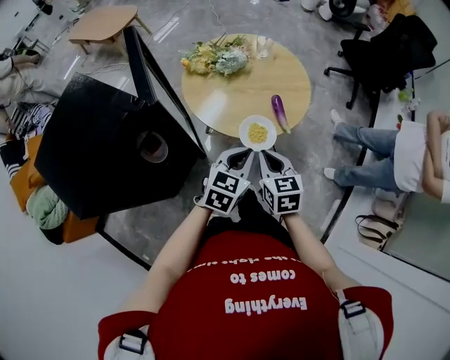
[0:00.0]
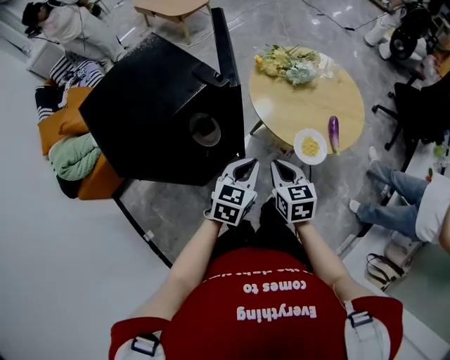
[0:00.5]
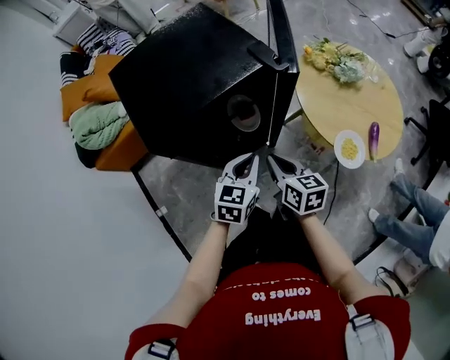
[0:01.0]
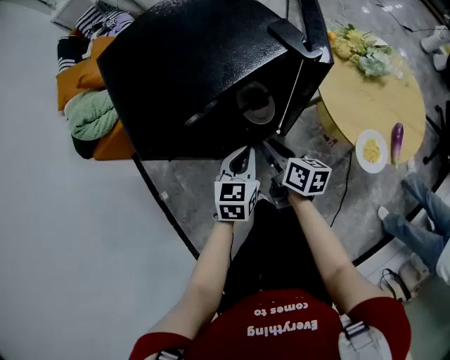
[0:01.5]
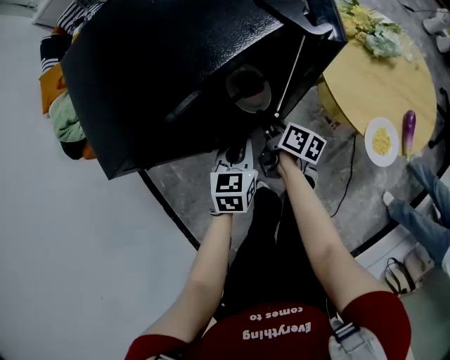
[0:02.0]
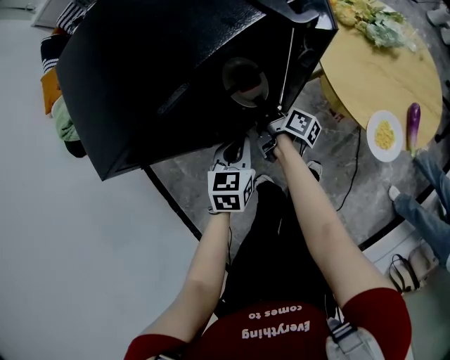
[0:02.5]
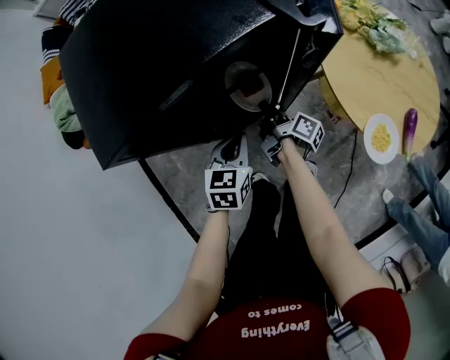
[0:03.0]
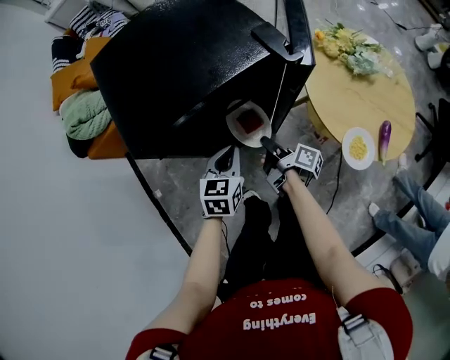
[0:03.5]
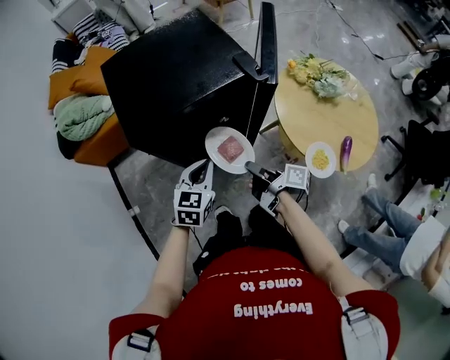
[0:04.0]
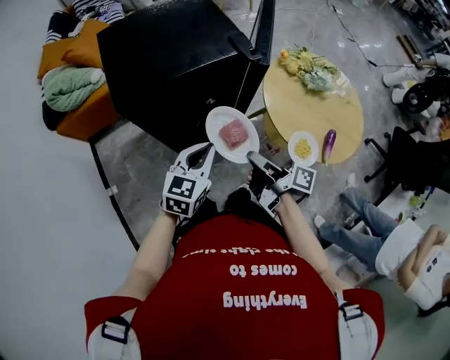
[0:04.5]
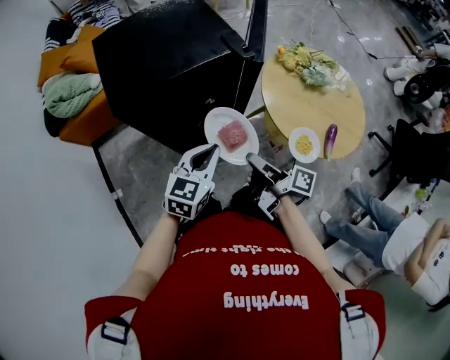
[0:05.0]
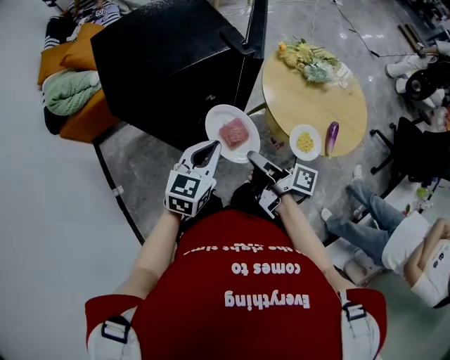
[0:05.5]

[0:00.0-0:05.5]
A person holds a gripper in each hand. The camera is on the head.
0:00.0 to 0:02.0: The left gripper changes place by about 40 cm, and turns by approximately 50 degrees; the right gripper changes place by about 40 cm, changes its angle by roughly 60 degrees, and opens its fingers.
0:02.0 to 0:03.5: The left gripper shifts about 5 cm upward. Meanwhile the right gripper is displaced backward by about 5 cm, changes its angle by some 20 degrees, and closes its fingers.
0:03.5 to 0:05.5: The right gripper goes about 25 cm upward and backward, while the left gripper moves upward, backward and to the right, approximately 20 cm.

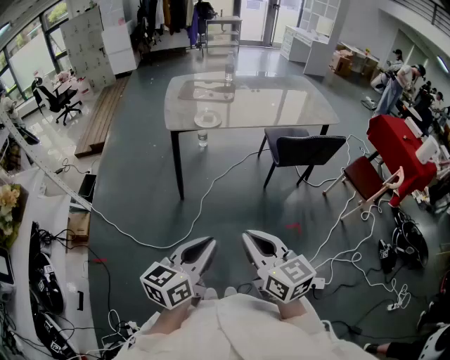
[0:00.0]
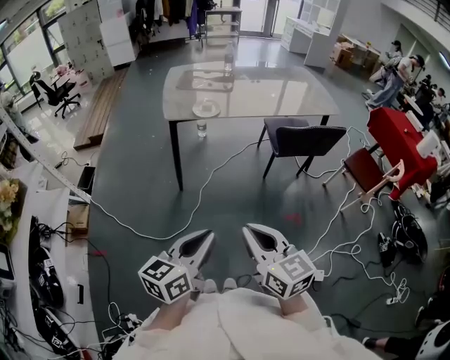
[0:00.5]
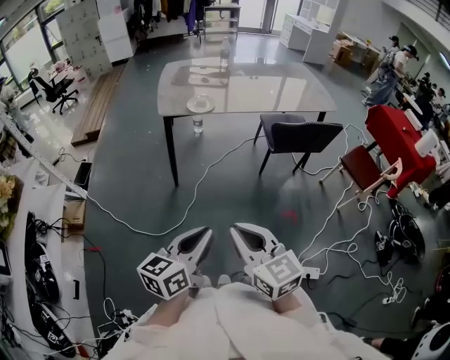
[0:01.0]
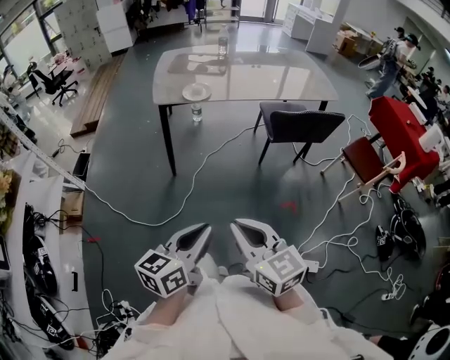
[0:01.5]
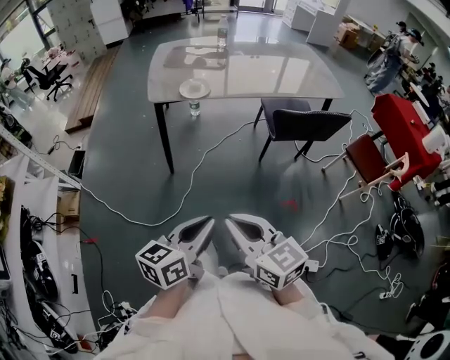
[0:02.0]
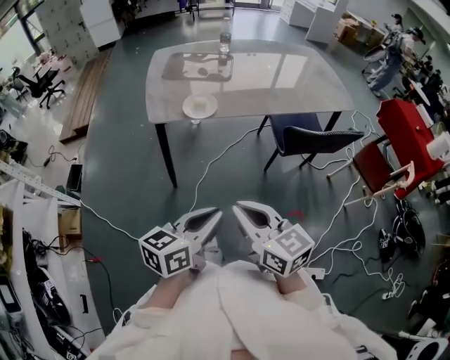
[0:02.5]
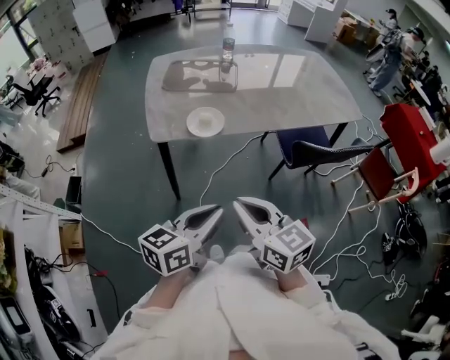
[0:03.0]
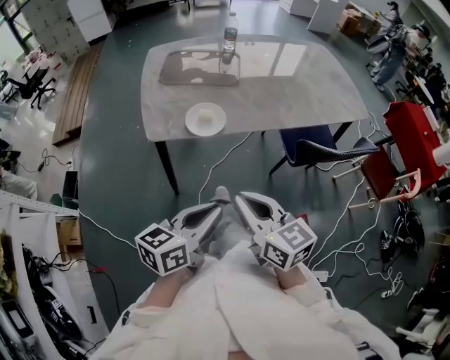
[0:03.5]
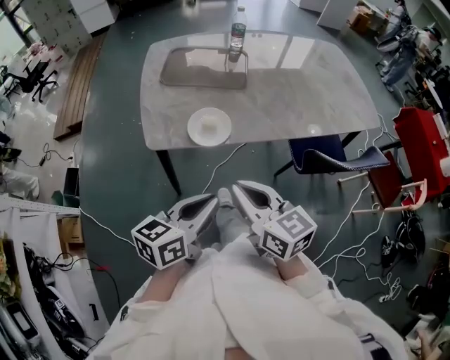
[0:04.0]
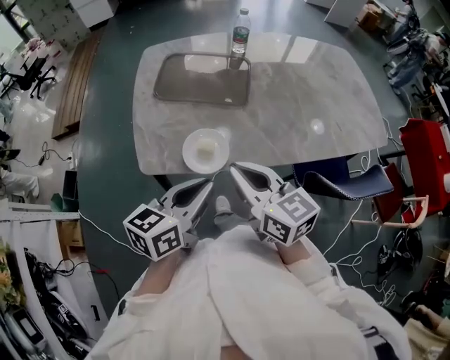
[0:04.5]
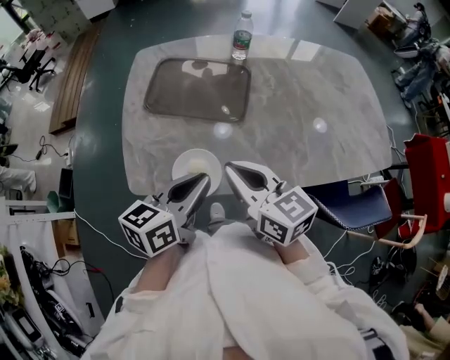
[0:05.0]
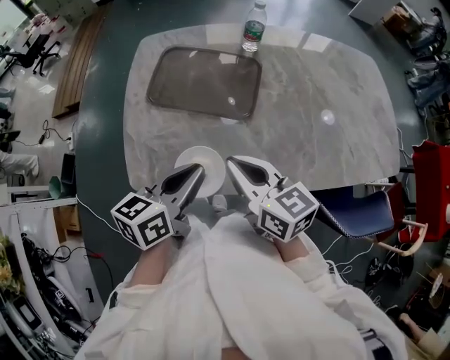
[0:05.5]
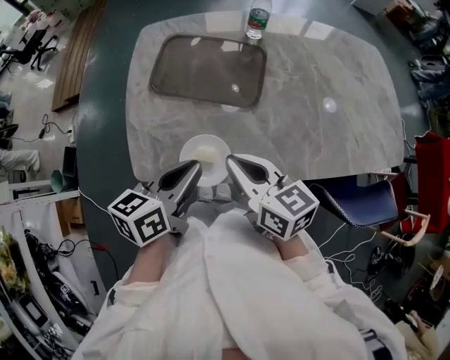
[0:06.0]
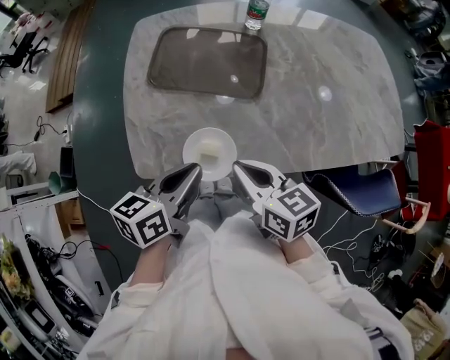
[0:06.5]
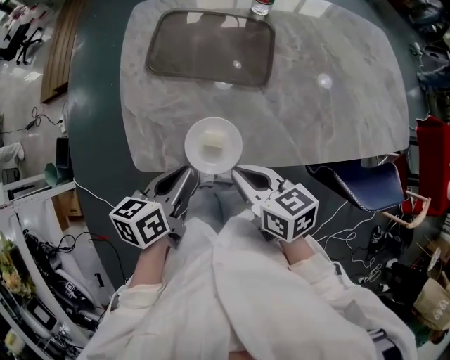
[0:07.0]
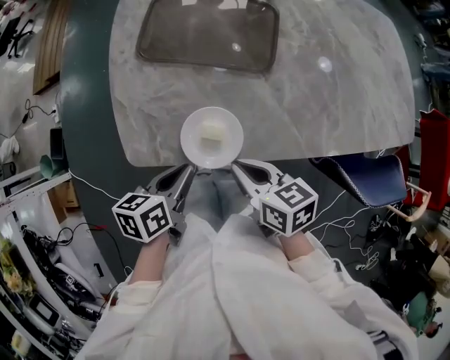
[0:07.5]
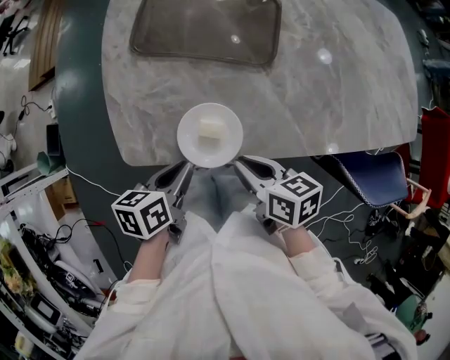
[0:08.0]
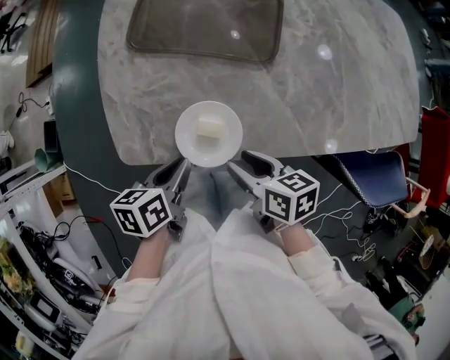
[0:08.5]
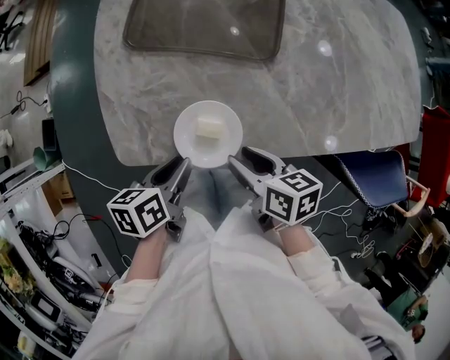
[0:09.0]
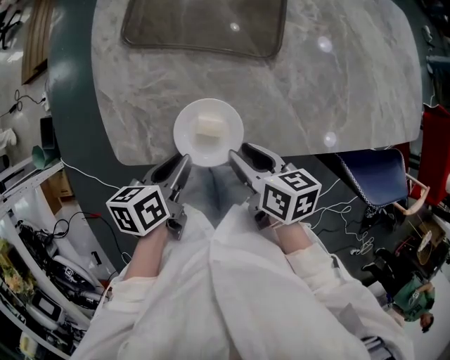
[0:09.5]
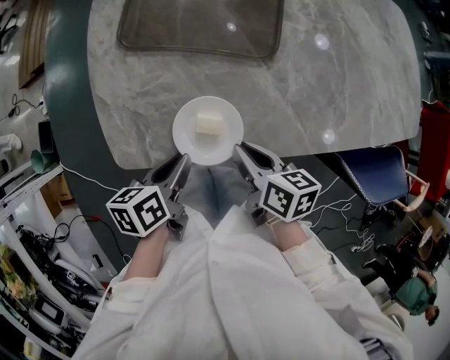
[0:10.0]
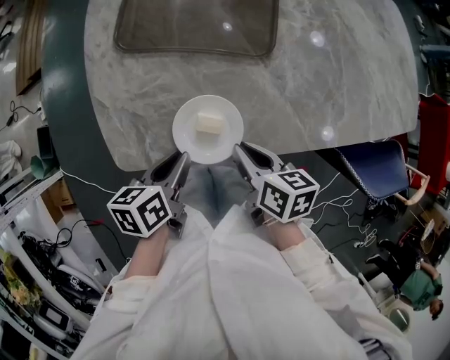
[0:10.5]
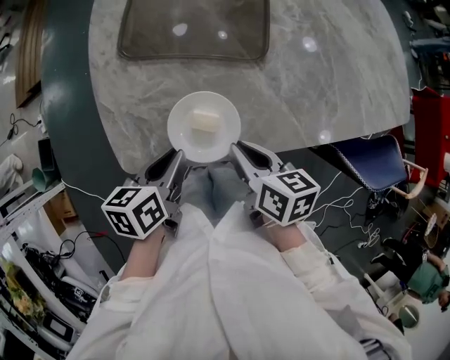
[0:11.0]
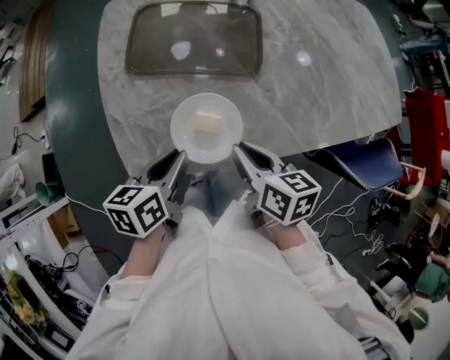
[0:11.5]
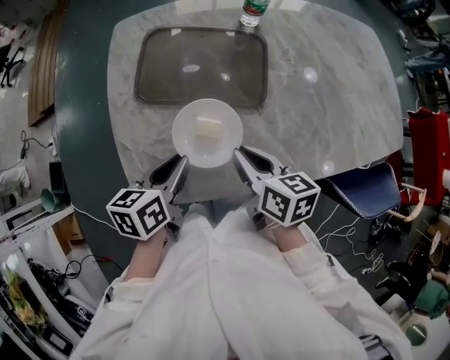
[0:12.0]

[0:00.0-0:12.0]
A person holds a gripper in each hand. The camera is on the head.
0:00.0 to 0:02.0: The right gripper travels forward by approximately 5 cm. Meanwhile the left gripper moves forward and downward, about 10 cm.
0:02.0 to 0:04.0: Both grippers are carried forward, approximately 40 cm.
0:04.0 to 0:06.0: The two grippers go some 25 cm forward.
0:06.0 to 0:08.0: The two grippers go about 15 cm downward. The left gripper rotates about 30 degrees. The right gripper rotates roughly 30 degrees.
0:08.0 to 0:10.0: The right gripper opens and closes again.
0:10.0 to 0:12.0: The right gripper is displaced upward and forward by roughly 10 cm; the left gripper moves forward and upward, roughly 15 cm.

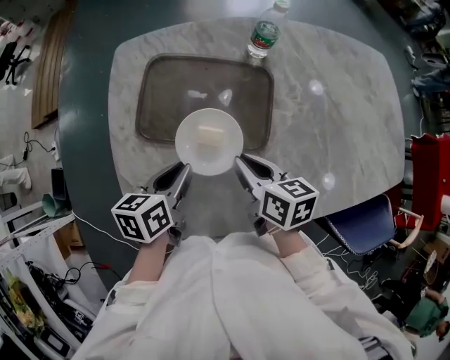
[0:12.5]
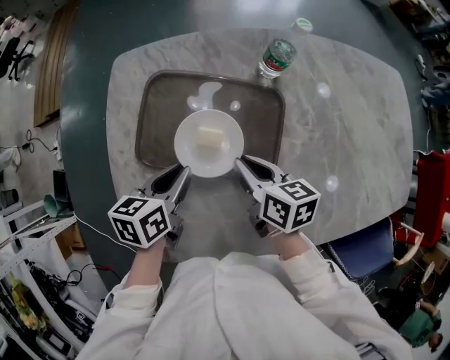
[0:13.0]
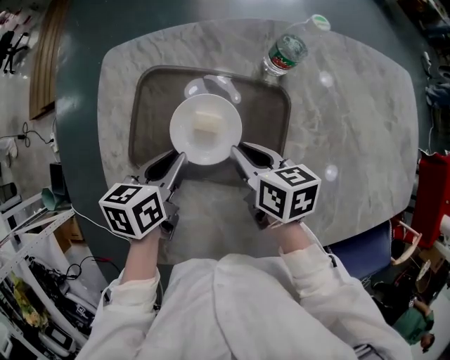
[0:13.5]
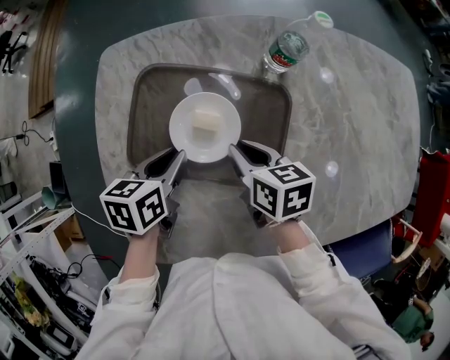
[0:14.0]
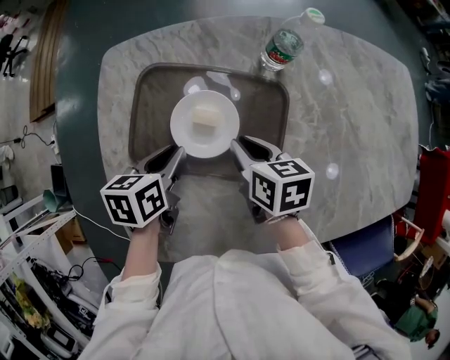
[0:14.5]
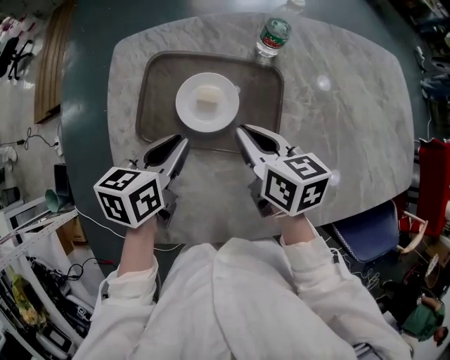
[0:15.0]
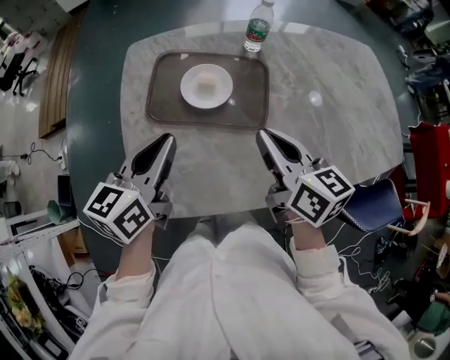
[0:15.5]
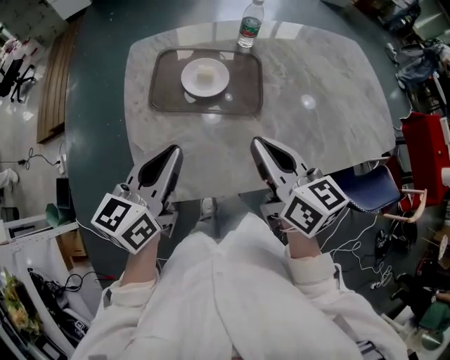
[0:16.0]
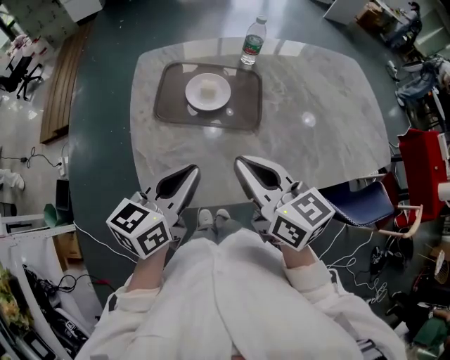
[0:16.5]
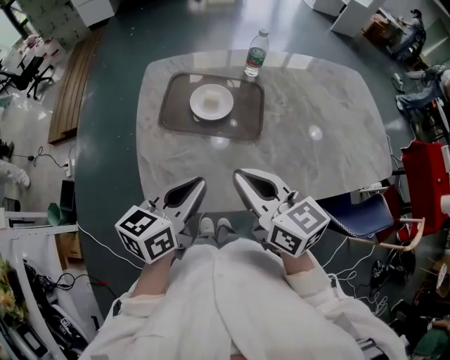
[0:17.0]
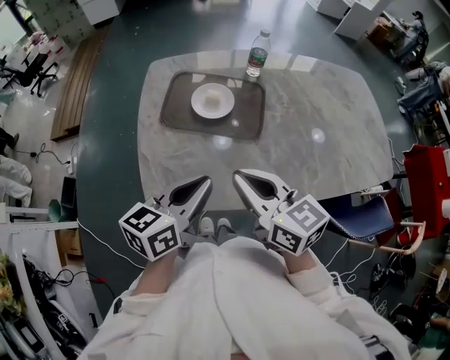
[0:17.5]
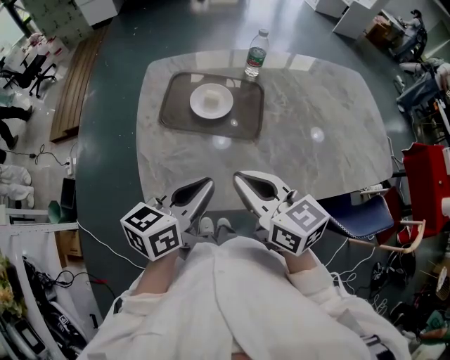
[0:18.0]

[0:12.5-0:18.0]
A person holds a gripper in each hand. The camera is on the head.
0:12.5 to 0:14.5: The right gripper shifts some 15 cm forward and downward. Meanwhile the left gripper travels forward by approximately 10 cm.
0:14.5 to 0:16.0: The two grippers go about 30 cm backward and upward. The left gripper angles its fingers upward, by about 30 degrees. The right gripper points its fingers roughly 30 degrees further upward.
0:16.0 to 0:18.0: The left gripper moves to the right, about 5 cm; the right gripper shifts by some 5 cm.

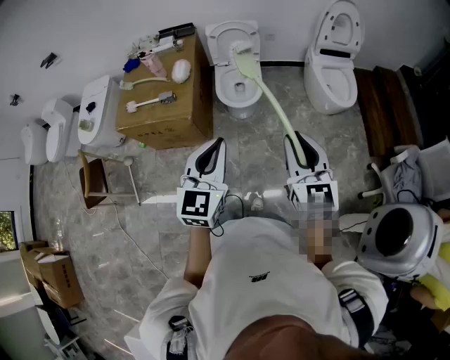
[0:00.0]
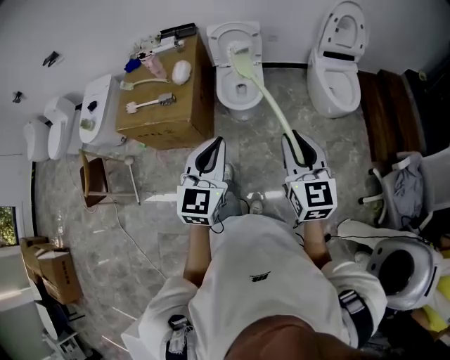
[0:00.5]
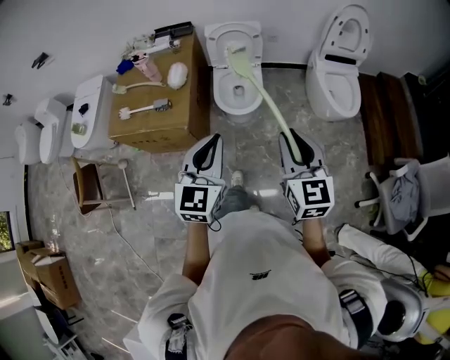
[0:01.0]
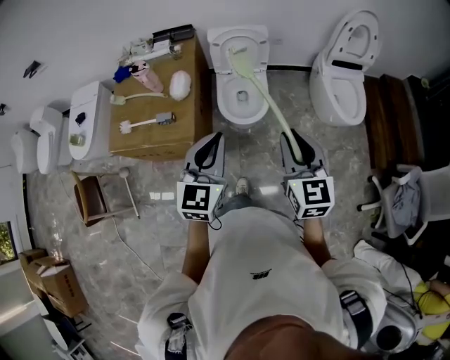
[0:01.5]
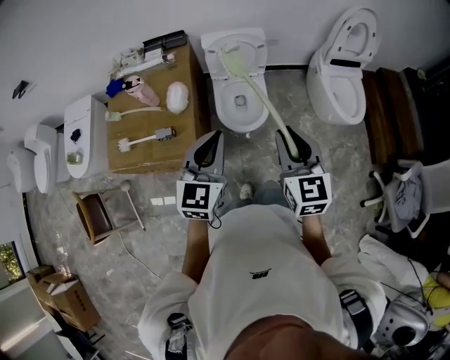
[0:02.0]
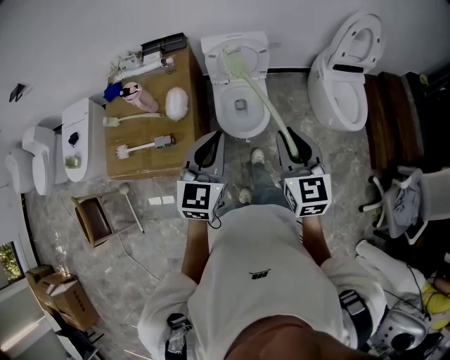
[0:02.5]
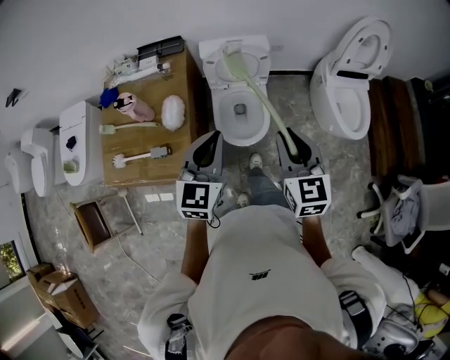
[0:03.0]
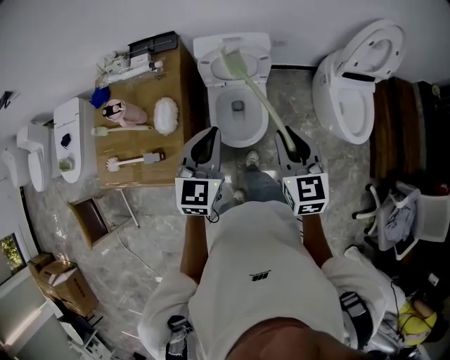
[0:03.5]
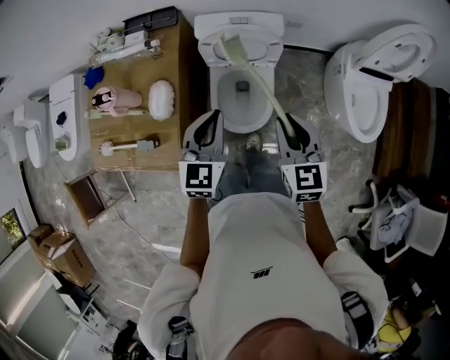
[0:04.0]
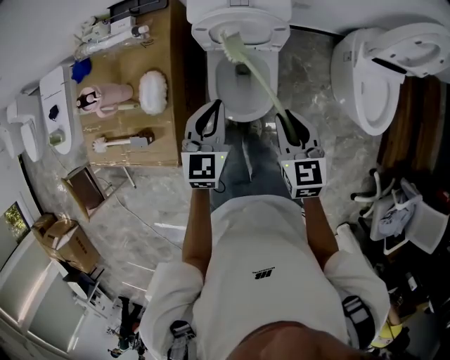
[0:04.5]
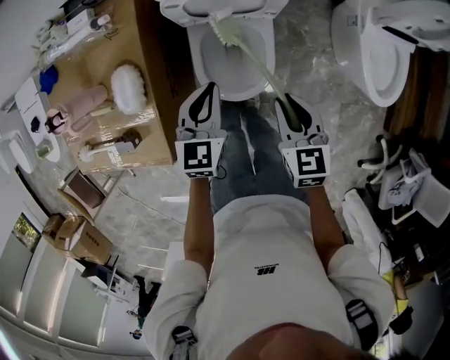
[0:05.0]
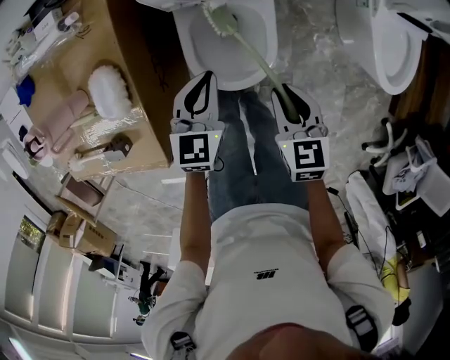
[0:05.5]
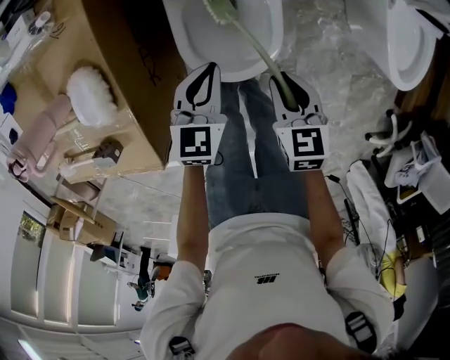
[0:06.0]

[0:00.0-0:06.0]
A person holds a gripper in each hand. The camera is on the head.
0:00.0 to 0:02.0: The grippers both shift forward by about 30 cm.
0:02.0 to 0:04.0: The two grippers go about 30 cm forward and downward.
0:04.0 to 0:06.0: Both grippers move downward, about 35 cm. The right gripper turns by roughly 30 degrees, while the left gripper swivels approximately 20 degrees.
